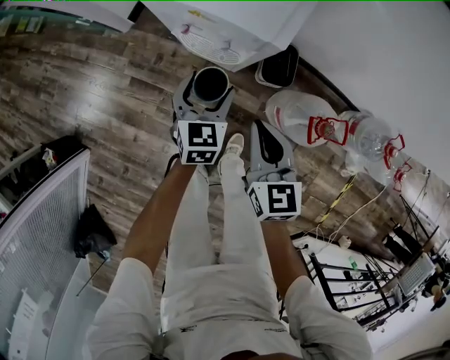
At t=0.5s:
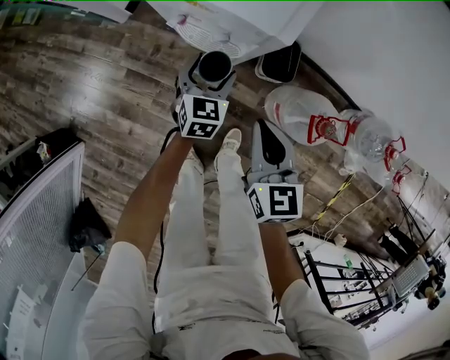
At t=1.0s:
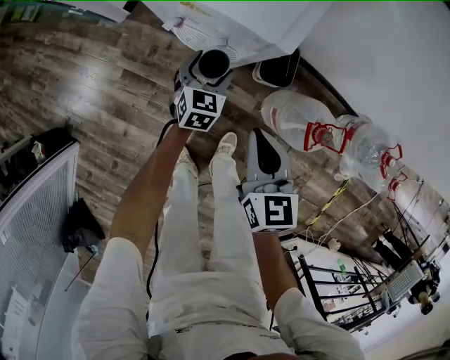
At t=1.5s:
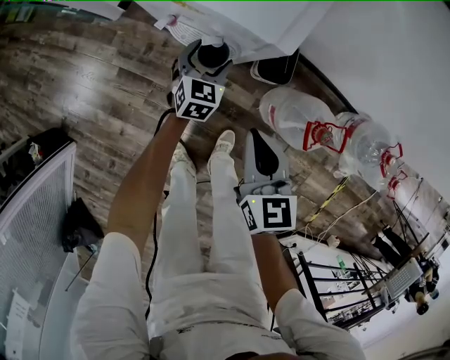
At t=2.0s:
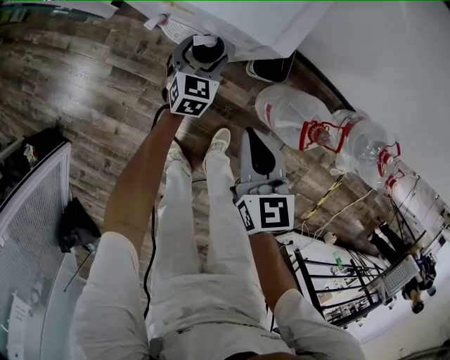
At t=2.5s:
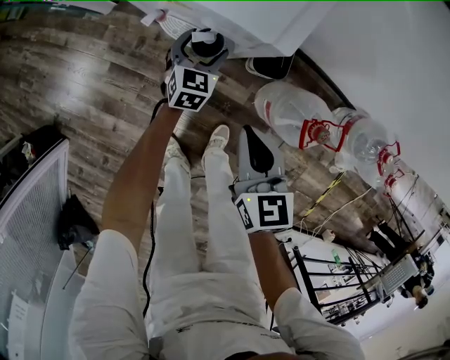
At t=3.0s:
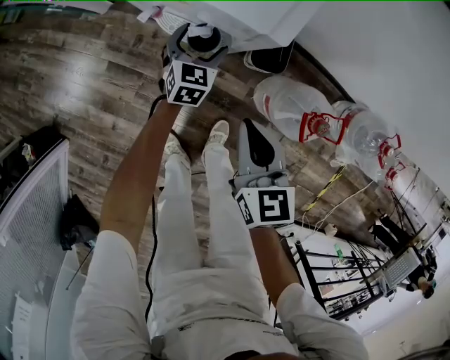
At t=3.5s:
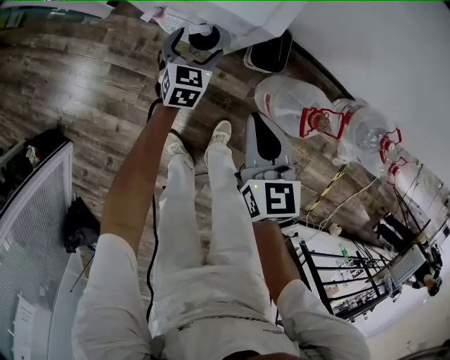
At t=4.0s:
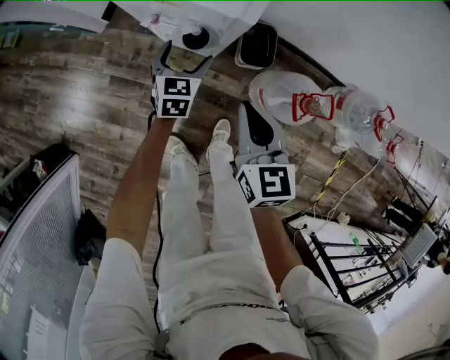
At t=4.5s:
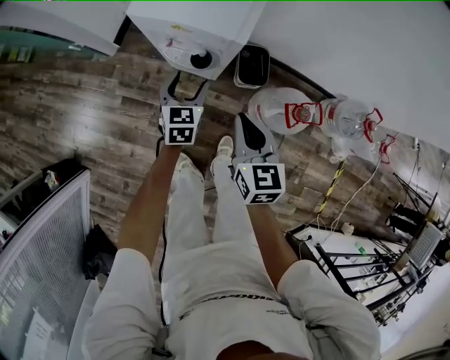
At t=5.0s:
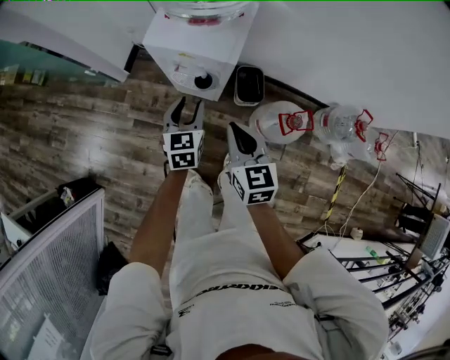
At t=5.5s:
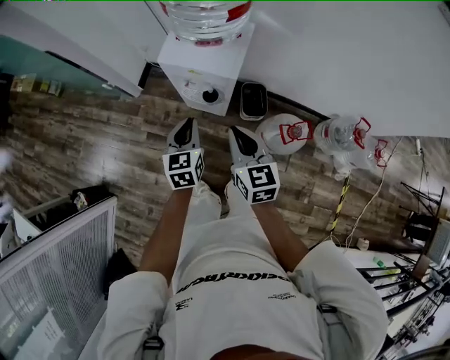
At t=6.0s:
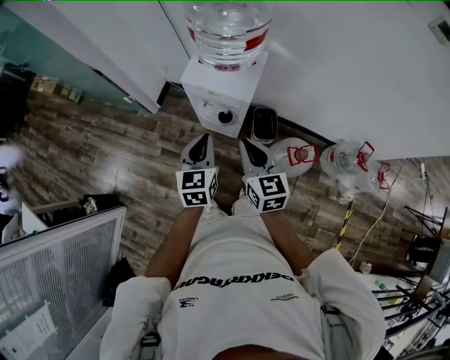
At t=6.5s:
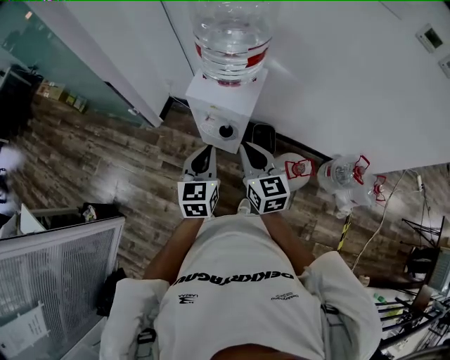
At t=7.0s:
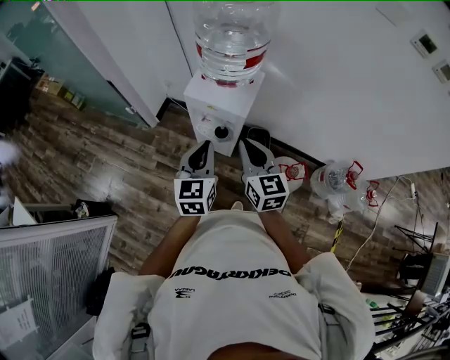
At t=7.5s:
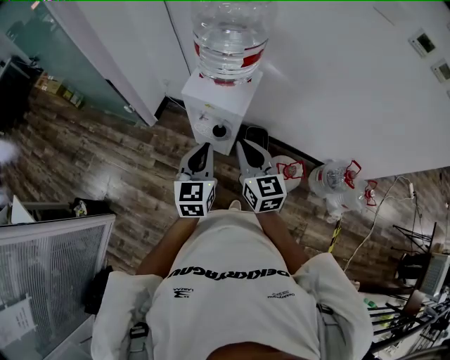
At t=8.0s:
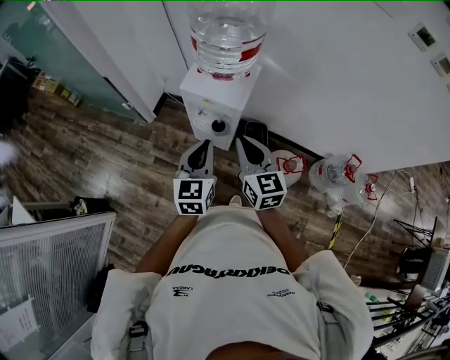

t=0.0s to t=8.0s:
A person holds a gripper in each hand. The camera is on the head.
t=0.0s to t=2.0s: The left gripper is displaced downward and forward by some 15 cm. Meanwhile the right gripper shifts some 5 cm downward.
t=2.0s to t=4.0s: The two grippers go about 10 cm upward.
t=4.0s to t=6.0s: The right gripper shifts some 25 cm upward, while the left gripper goes approximately 40 cm upward, and closes its fingers.
t=6.0s to t=8.0s: Both grippers travel together upward, about 5 cm.

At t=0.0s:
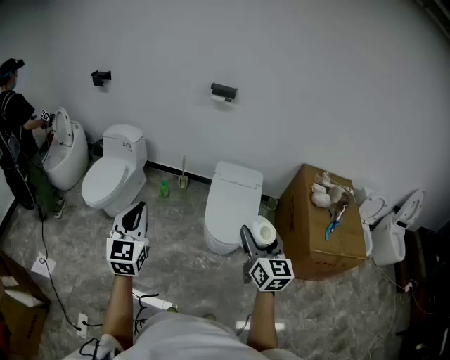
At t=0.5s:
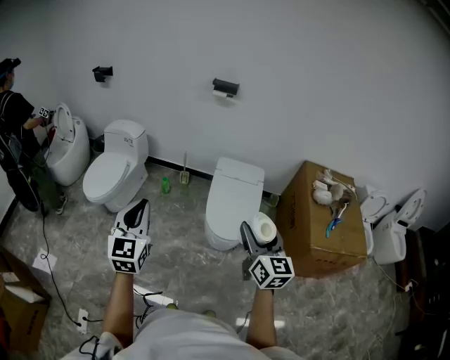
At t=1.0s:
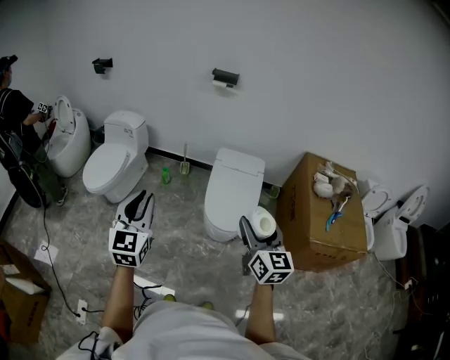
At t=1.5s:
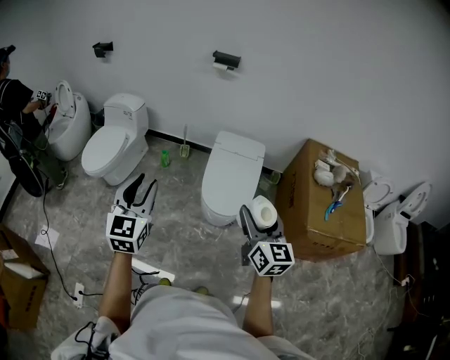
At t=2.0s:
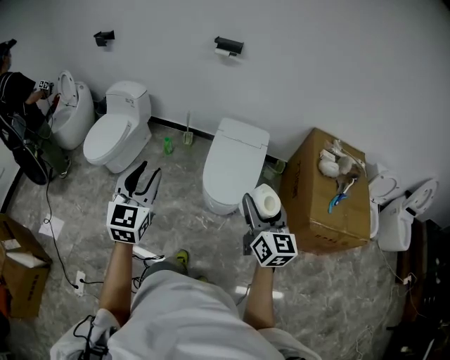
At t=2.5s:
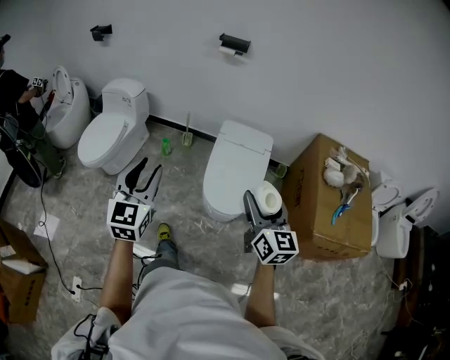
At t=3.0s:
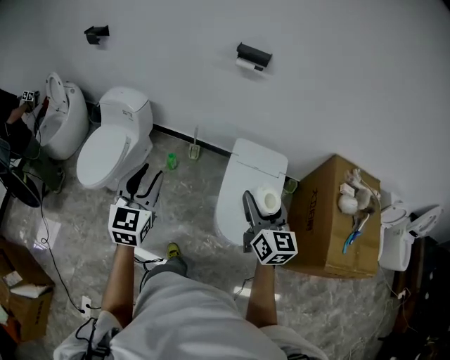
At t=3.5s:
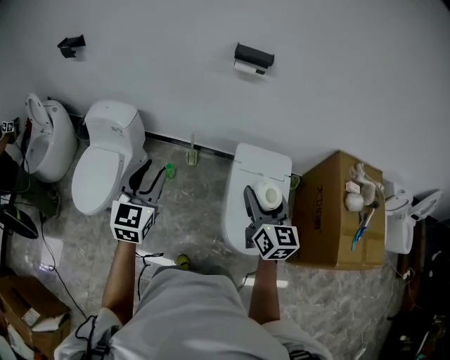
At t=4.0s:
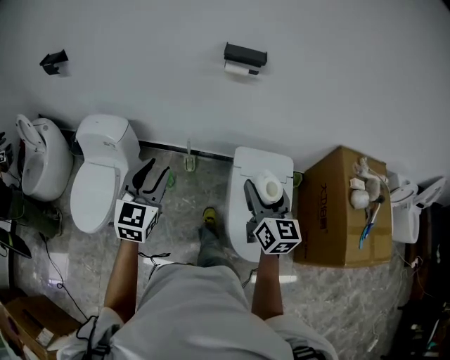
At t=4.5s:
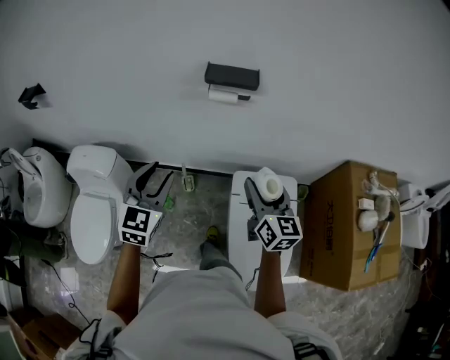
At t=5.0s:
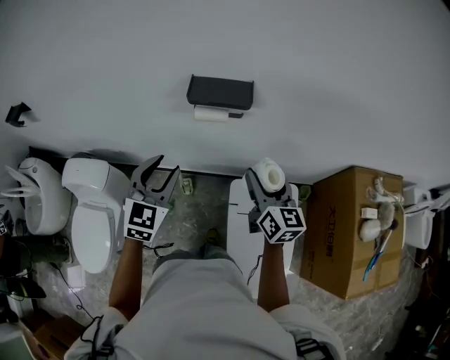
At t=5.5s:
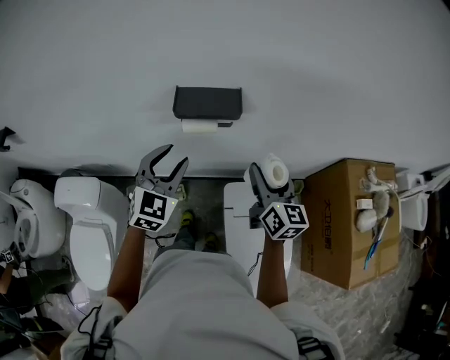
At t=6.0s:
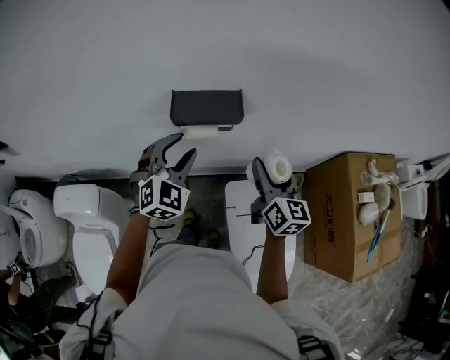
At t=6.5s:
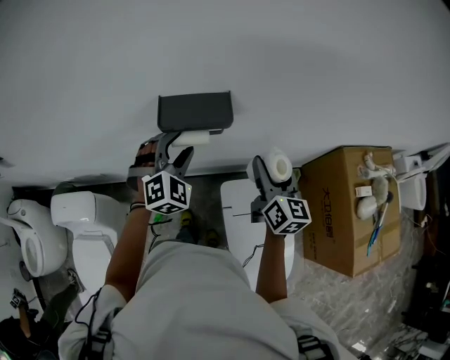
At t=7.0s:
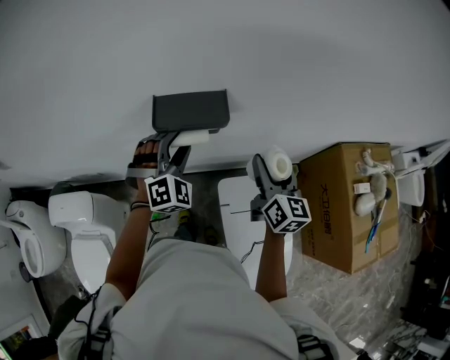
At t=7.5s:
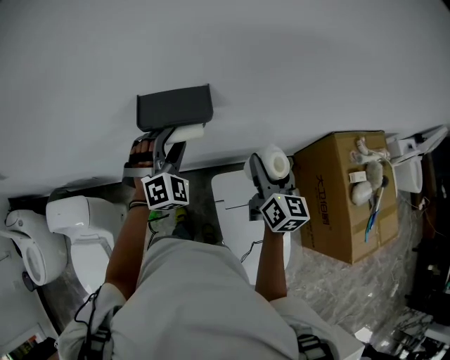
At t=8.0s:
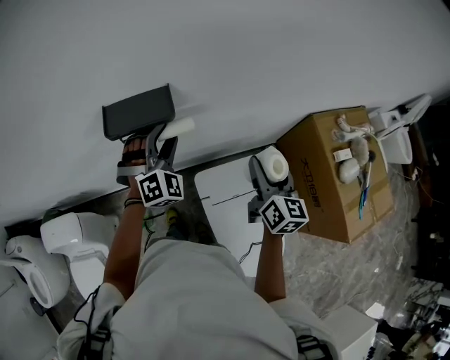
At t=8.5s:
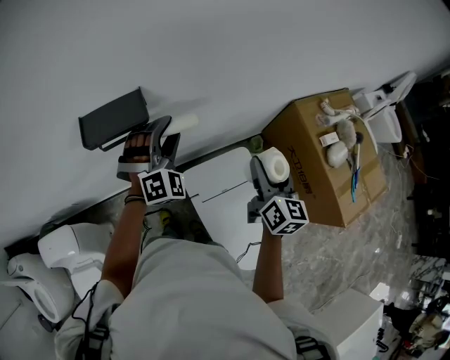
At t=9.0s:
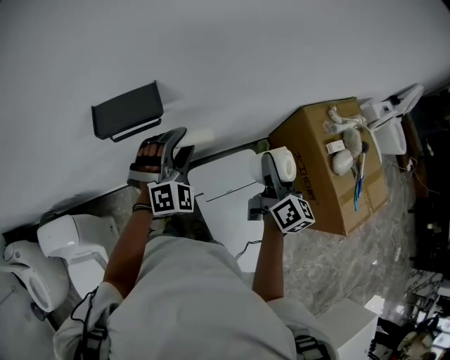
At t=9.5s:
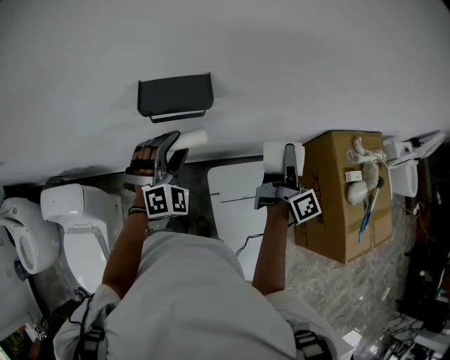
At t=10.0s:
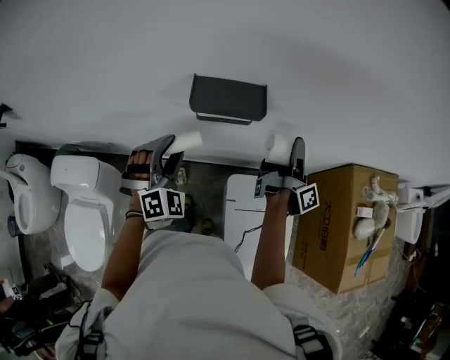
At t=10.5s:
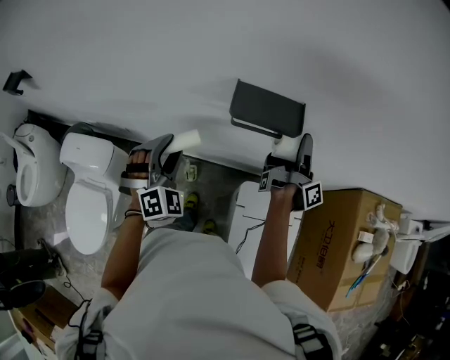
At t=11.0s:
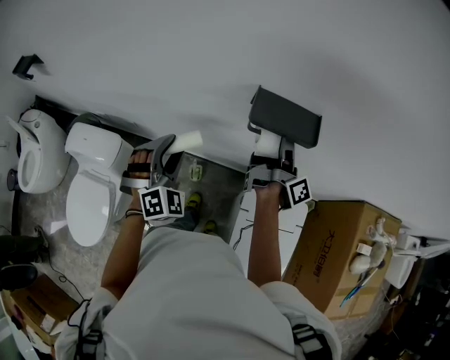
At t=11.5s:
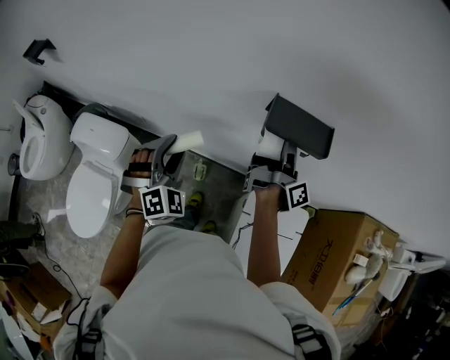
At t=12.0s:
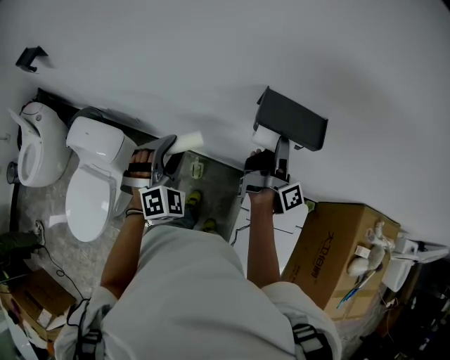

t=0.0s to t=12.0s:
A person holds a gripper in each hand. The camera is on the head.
t=0.0s to t=2.0s: Both grippers travel together to the right, some 10 cm. The left gripper opens.
t=2.0s to t=4.0s: The pair of grippers is taken forward, about 60 cm.
t=4.0s to t=6.0s: The two grippers travel together, forward, roughly 50 cm. The left gripper rotates approximately 40 degrees.
t=6.0s to t=8.0s: The left gripper travels to the right and forward by approximately 10 cm, and turns by about 20 degrees; the right gripper heads to the right, covering roughly 15 cm.
t=8.0s to t=10.0s: The right gripper heads to the left and forward, covering approximately 15 cm, and twists about 70 degrees clockwise, seen from behind; the left gripper is displaced to the left and backward by some 20 cm.
t=10.0s to t=12.0s: The left gripper shifts approximately 15 cm to the left; the right gripper goes about 20 cm to the left.

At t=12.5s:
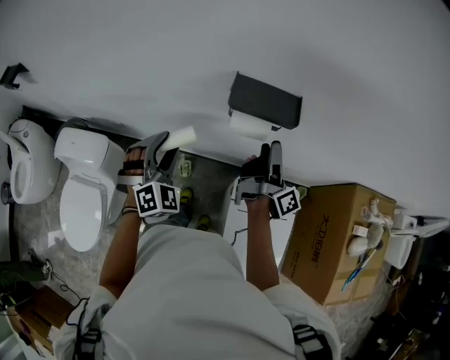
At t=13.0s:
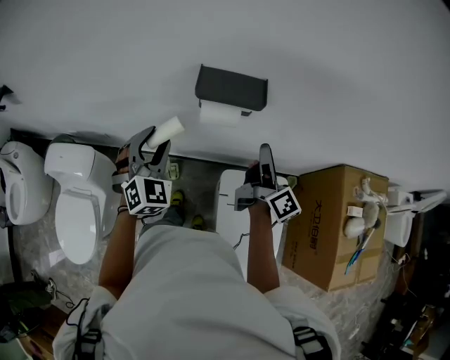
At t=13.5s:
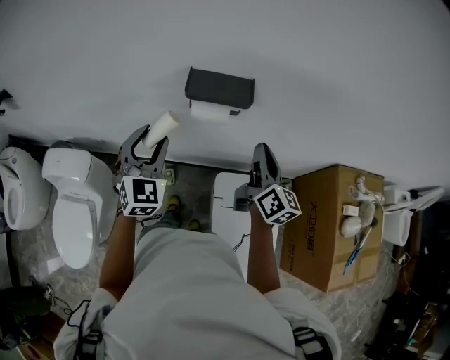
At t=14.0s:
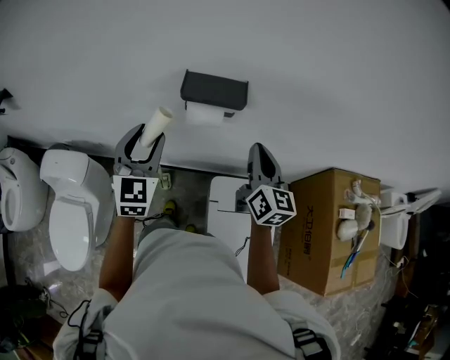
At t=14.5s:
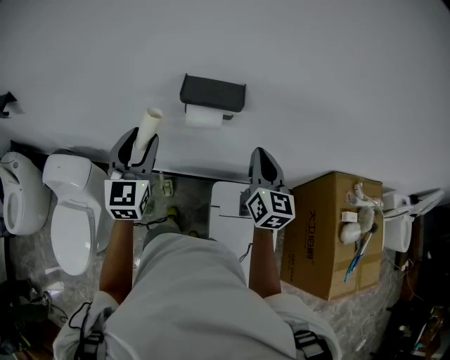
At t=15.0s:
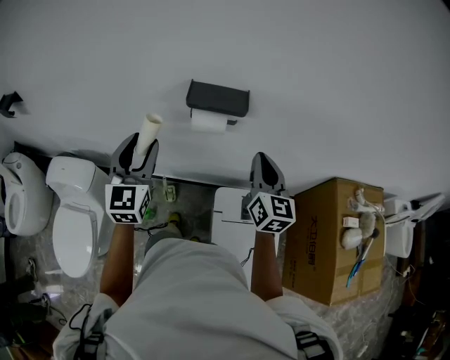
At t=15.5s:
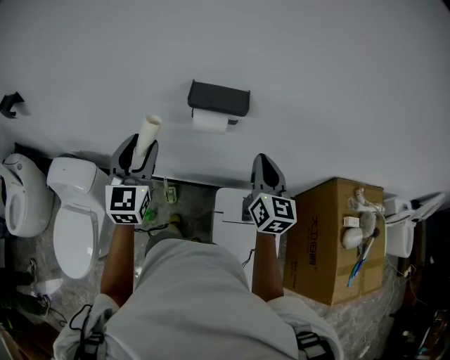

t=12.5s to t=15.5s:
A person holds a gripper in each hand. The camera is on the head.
t=12.5s to t=14.0s: The right gripper shifts approximately 10 cm backward, upward and to the right, twists approximately 70 degrees counterclockwise, seen from behind, and closes up. Meanwhile the left gripper moves upward and to the right, roughly 10 cm, and turns by approximately 40 degrees.
t=14.0s to t=15.5s: The left gripper moves some 5 cm.

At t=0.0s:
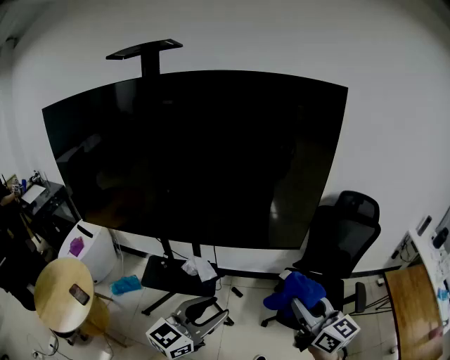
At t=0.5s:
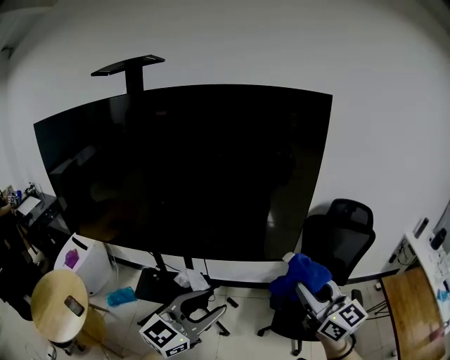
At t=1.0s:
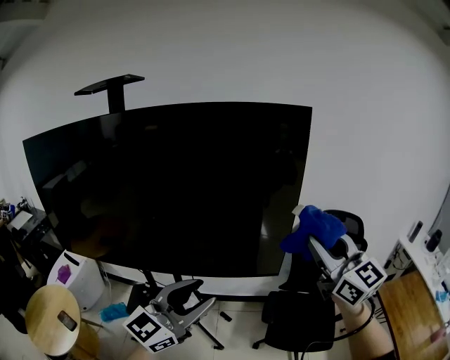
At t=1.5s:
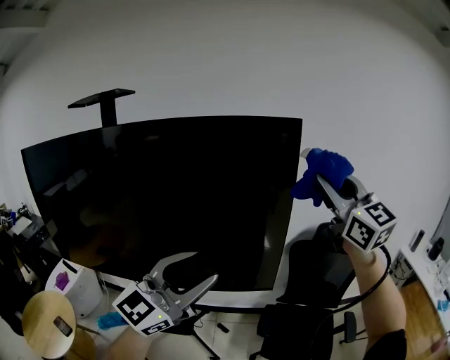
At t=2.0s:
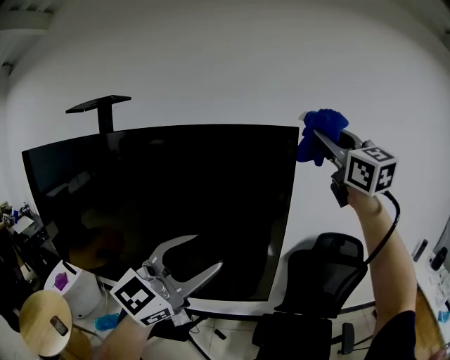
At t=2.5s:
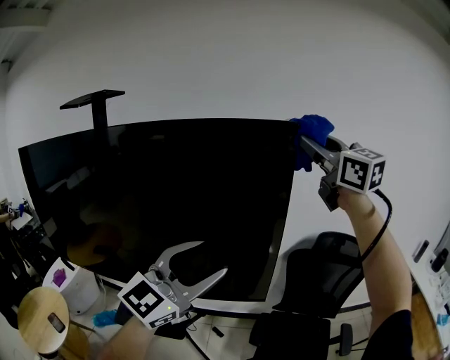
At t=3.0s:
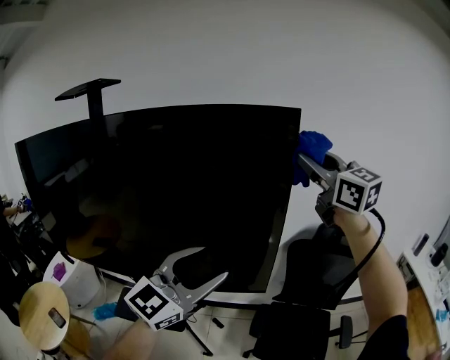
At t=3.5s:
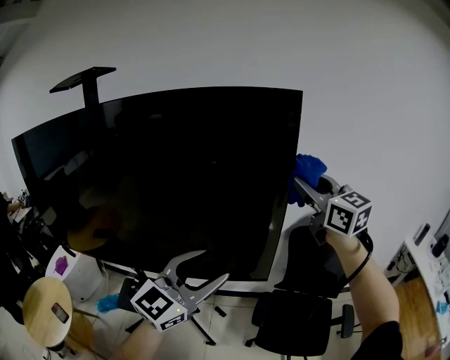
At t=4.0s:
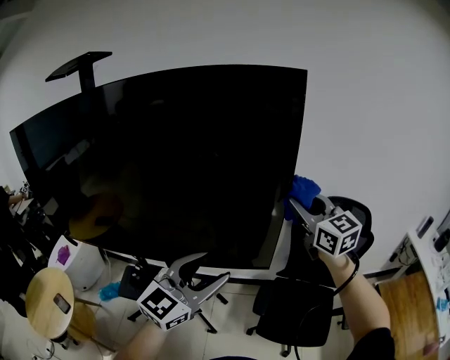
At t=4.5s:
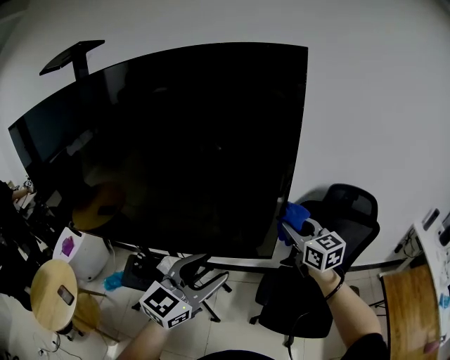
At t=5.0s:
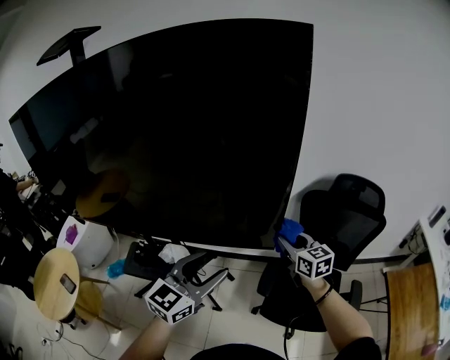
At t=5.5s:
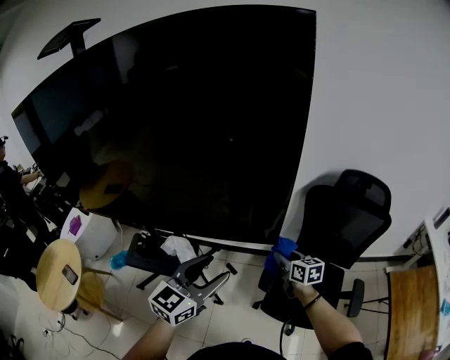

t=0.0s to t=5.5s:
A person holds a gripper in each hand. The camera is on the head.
t=0.0s to t=2.0s: The right gripper travels upward and forward by about 60 cm, and turns by approximately 40 degrees. Meanwhile the left gripper moves upward and forward, about 30 cm, and changes its angle by approximately 30 degrees.
t=2.0s to t=3.5s: The left gripper is displaced downward by approximately 15 cm, while the right gripper heads downward, covering approximately 20 cm.
t=3.5s to t=5.5s: The left gripper heads downward, covering some 20 cm, and turns by about 20 degrees; the right gripper moves downward, approximately 50 cm, and angles its fingers downward, by approximately 30 degrees.
